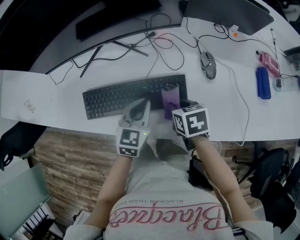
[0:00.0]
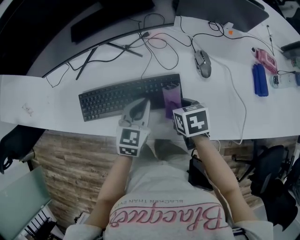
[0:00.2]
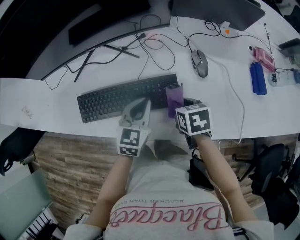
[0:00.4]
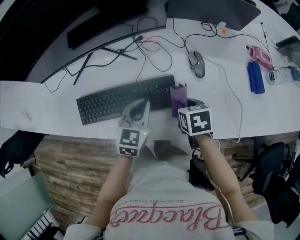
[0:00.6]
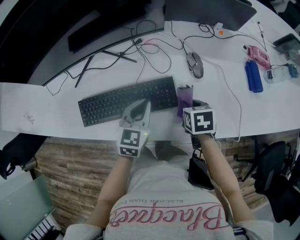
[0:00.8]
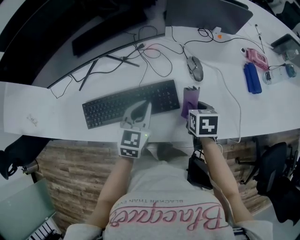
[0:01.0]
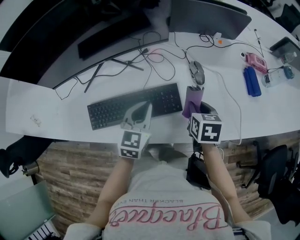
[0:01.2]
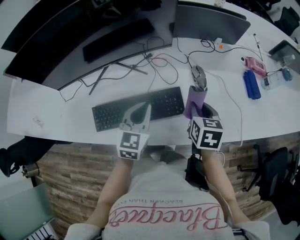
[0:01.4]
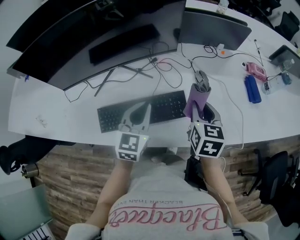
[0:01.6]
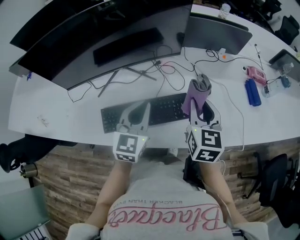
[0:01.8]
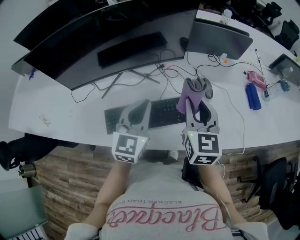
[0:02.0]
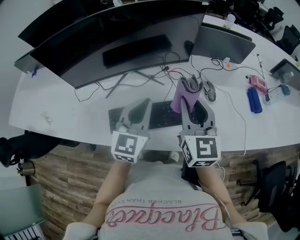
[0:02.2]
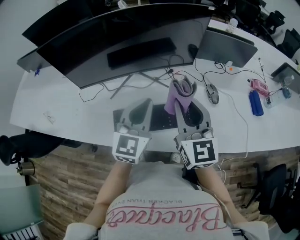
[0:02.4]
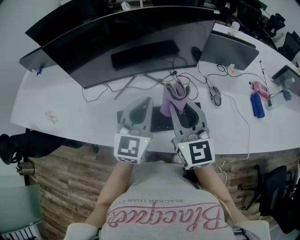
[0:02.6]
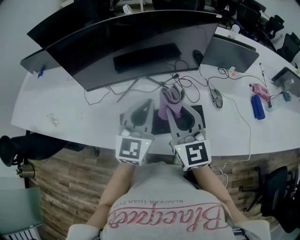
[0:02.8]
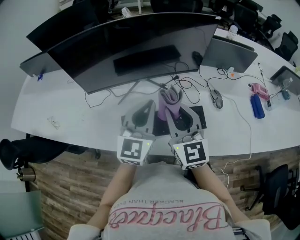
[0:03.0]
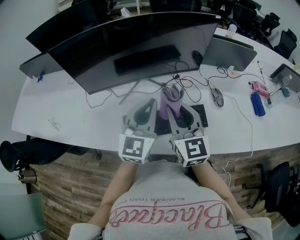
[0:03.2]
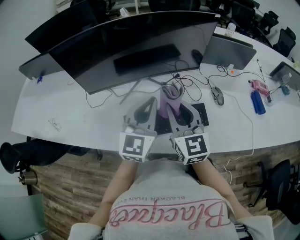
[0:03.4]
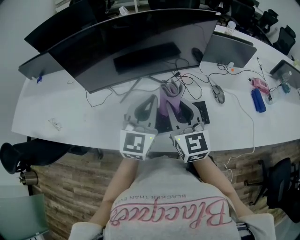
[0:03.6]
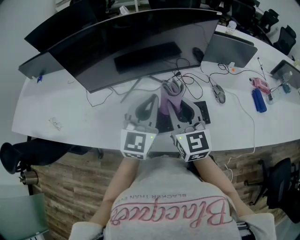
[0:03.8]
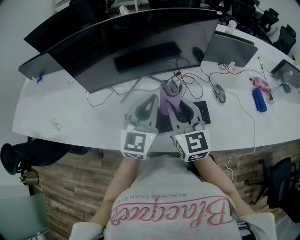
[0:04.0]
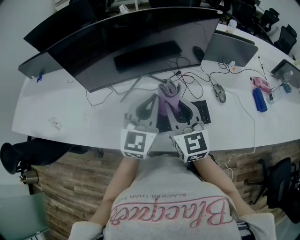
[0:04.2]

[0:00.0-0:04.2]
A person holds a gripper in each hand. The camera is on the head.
0:00.0 to 0:01.4: The right gripper travels upward and to the right by roughly 15 cm, and swivels some 30 degrees. Meanwhile the left gripper travels upward by approximately 10 cm.
0:01.4 to 0:02.8: The left gripper moves upward and to the left, about 20 cm, and rotates approximately 20 degrees. The right gripper travels to the left and upward by roughly 30 cm, and angles its fingers upward, by some 40 degrees.
0:02.8 to 0:04.2: The grippers make only small movements.

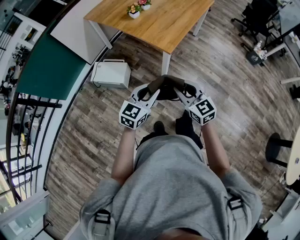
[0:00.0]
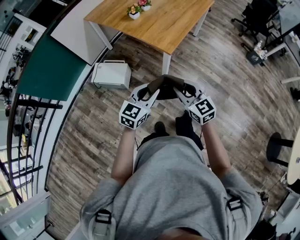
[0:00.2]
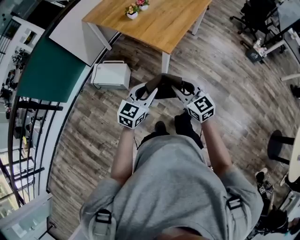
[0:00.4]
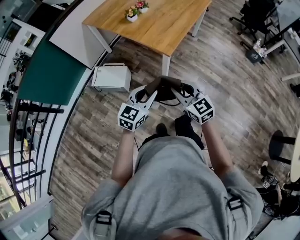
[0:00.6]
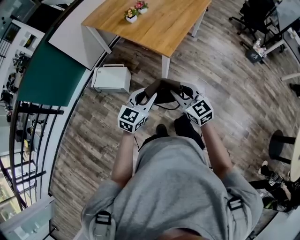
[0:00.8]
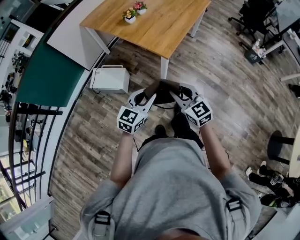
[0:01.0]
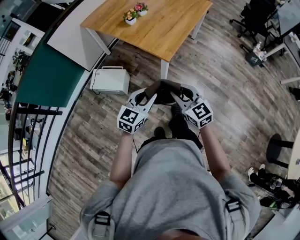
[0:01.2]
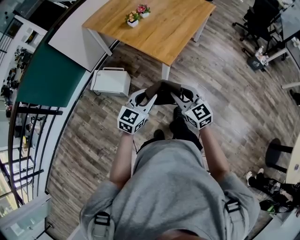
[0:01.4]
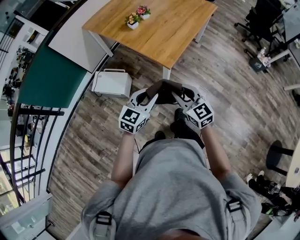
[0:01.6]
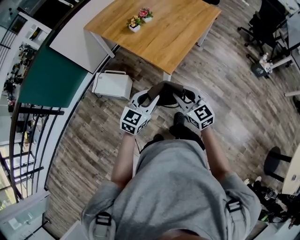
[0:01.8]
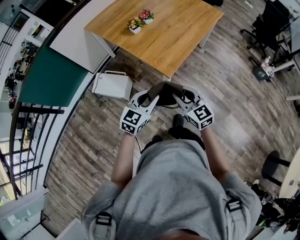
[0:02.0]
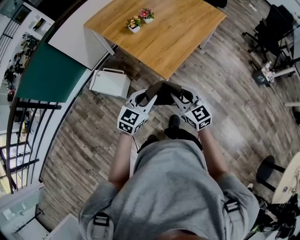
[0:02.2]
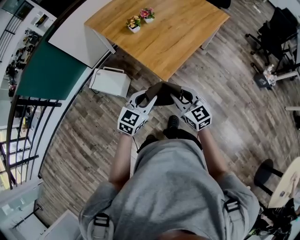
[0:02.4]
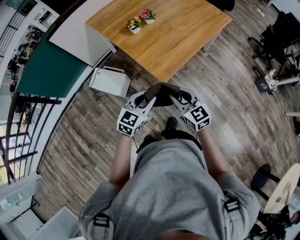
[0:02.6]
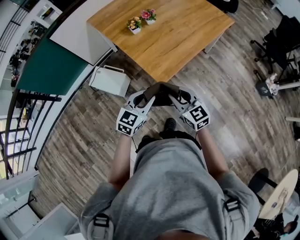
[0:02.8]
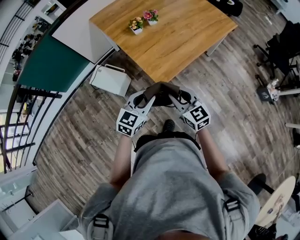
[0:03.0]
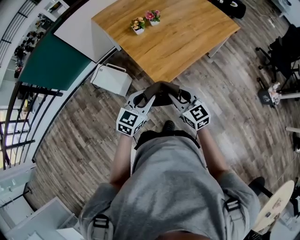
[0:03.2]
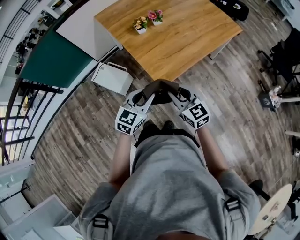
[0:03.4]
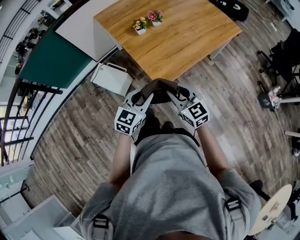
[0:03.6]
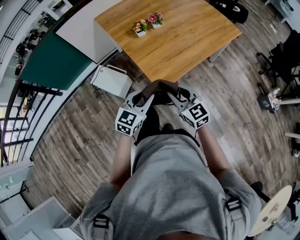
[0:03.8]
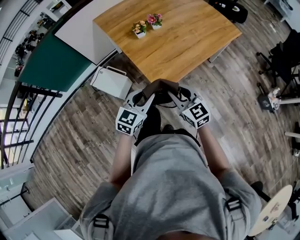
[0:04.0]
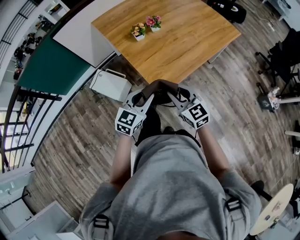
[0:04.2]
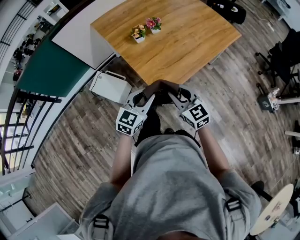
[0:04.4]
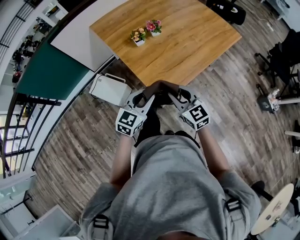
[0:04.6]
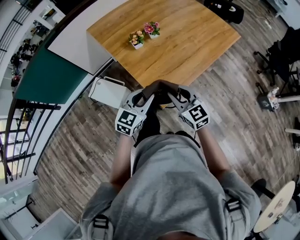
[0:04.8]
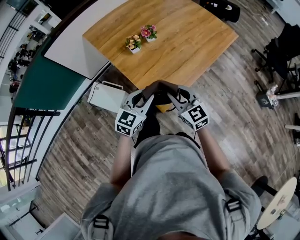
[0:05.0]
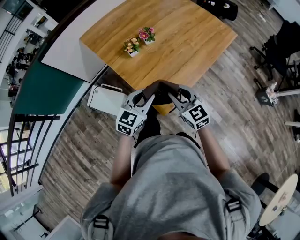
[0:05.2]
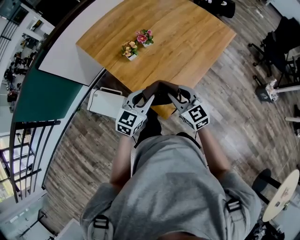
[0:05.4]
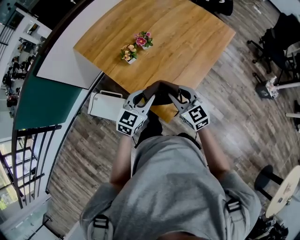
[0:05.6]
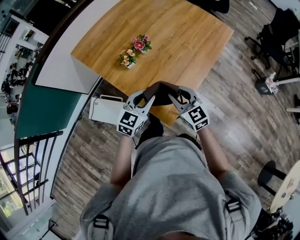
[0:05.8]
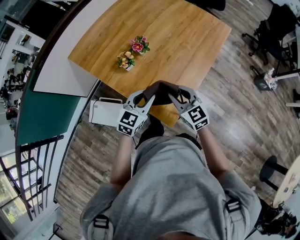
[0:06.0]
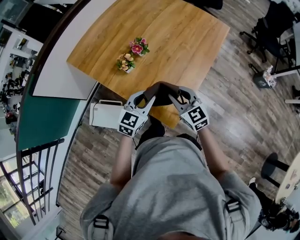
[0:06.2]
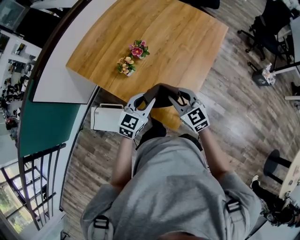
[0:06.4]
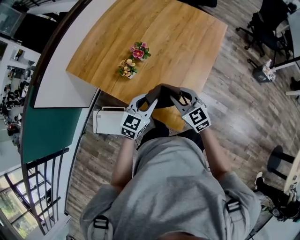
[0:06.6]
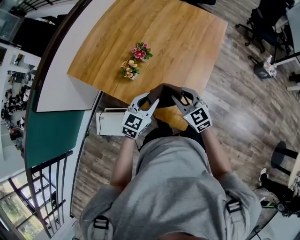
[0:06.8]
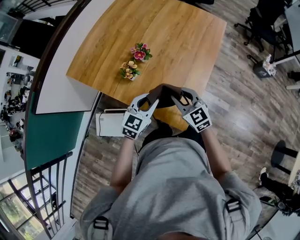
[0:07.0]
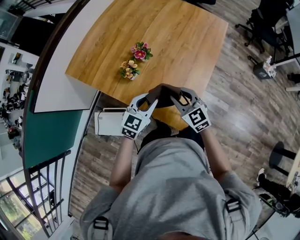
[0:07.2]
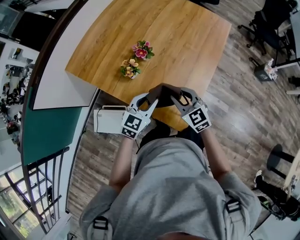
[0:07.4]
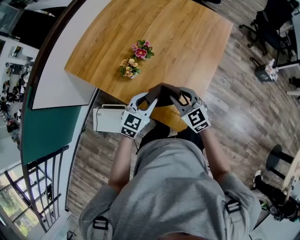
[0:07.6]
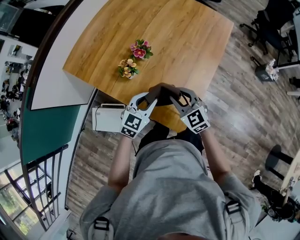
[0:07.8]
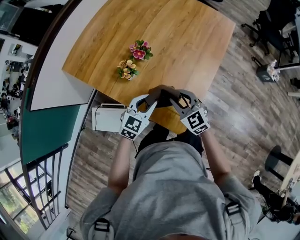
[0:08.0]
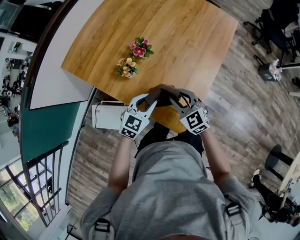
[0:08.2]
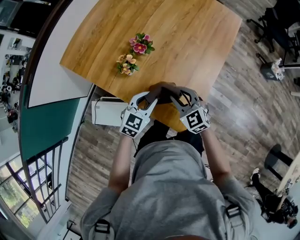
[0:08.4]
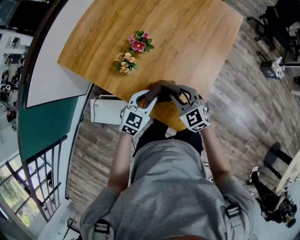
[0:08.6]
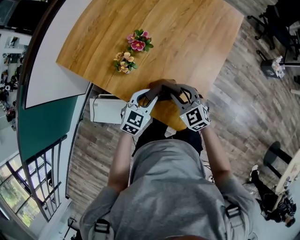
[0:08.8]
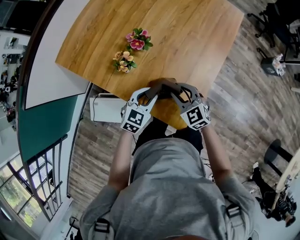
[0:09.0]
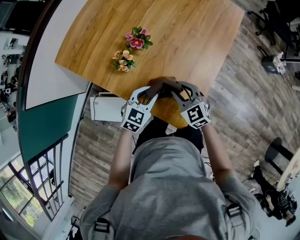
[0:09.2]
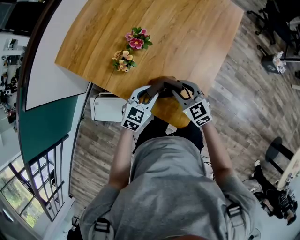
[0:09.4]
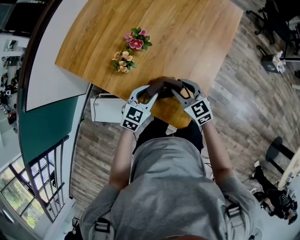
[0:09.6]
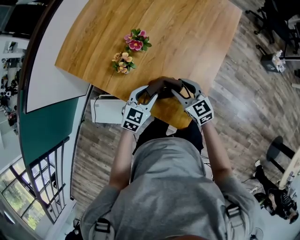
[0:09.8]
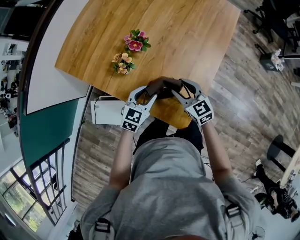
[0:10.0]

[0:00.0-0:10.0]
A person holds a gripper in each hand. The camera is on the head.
0:00.0 to 0:01.4: Both grippers move forward, roughly 5 cm.
0:01.4 to 0:02.8: Both grippers move forward and to the right, some 20 cm.
0:02.8 to 0:04.2: The grippers both shift forward by approximately 5 cm.
0:04.2 to 0:05.8: Both grippers move forward, approximately 20 cm.
0:05.8 to 0:07.2: The right gripper moves to the left, about 5 cm; the left gripper moves forward, roughly 5 cm.
0:07.2 to 0:08.6: Both grippers move downward, roughly 10 cm.
0:08.6 to 0:10.0: The grippers make only small movements.

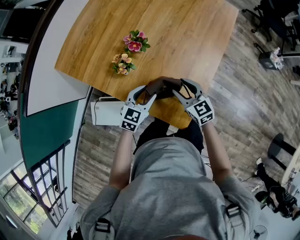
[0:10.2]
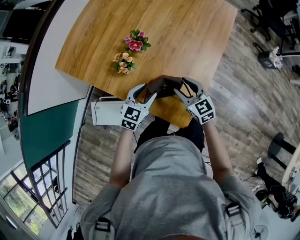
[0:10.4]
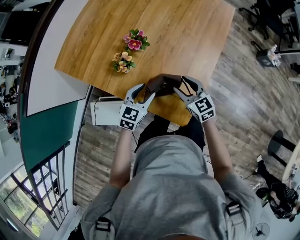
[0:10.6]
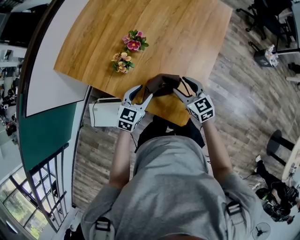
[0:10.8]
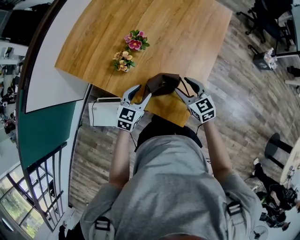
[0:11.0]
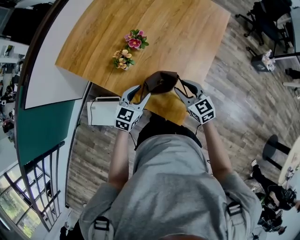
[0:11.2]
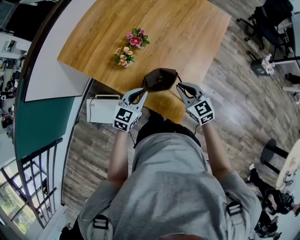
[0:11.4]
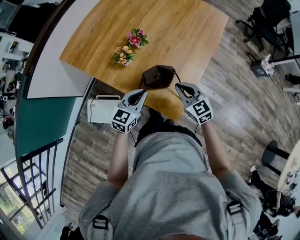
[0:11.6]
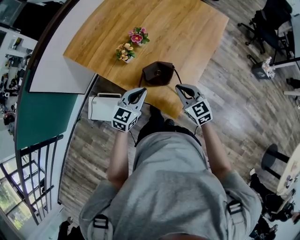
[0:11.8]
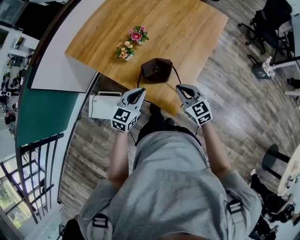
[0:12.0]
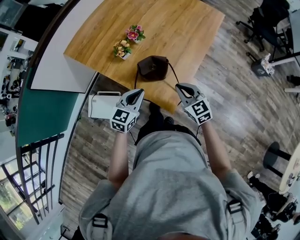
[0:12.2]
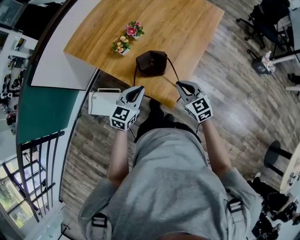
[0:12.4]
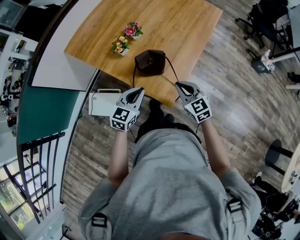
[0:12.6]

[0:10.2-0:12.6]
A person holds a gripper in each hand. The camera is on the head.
0:10.2 to 0:11.4: The right gripper travels backward and upward by about 10 cm, and closes its fingers, while the left gripper travels upward and backward by some 10 cm, and closes up.
0:11.4 to 0:12.6: The left gripper goes about 15 cm backward and upward; the right gripper goes approximately 10 cm backward.

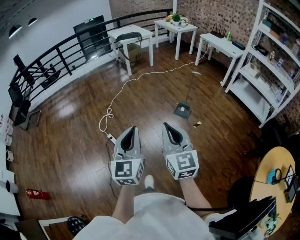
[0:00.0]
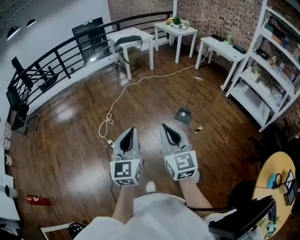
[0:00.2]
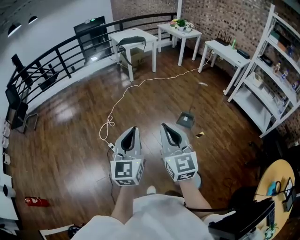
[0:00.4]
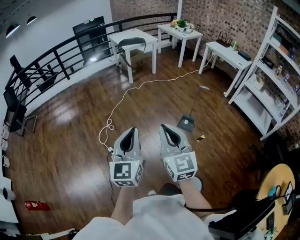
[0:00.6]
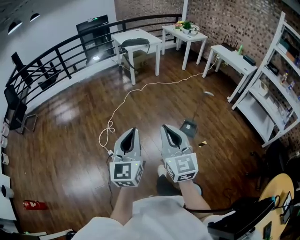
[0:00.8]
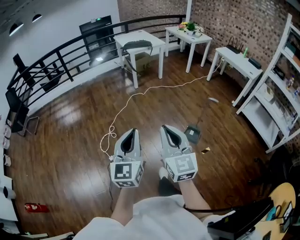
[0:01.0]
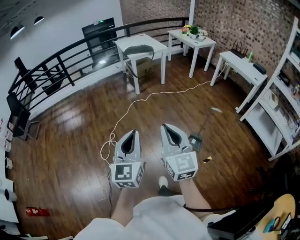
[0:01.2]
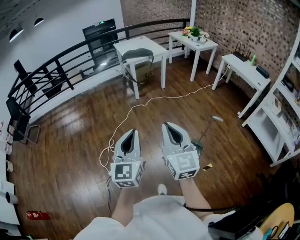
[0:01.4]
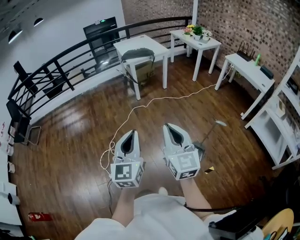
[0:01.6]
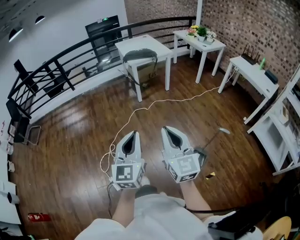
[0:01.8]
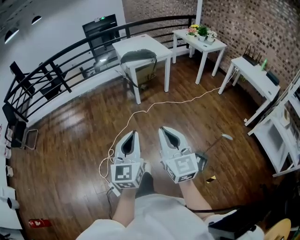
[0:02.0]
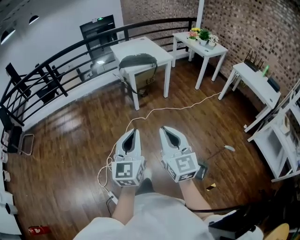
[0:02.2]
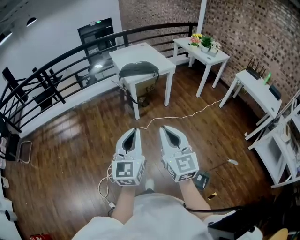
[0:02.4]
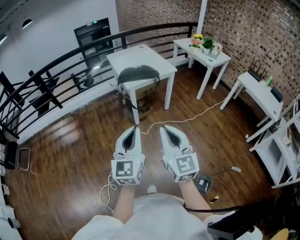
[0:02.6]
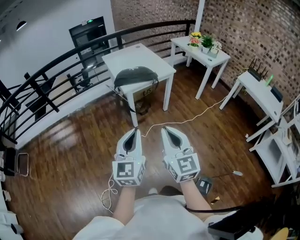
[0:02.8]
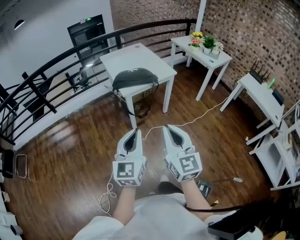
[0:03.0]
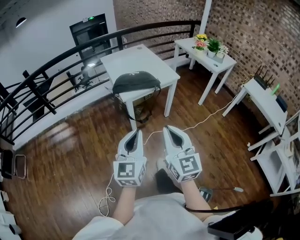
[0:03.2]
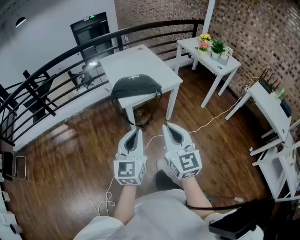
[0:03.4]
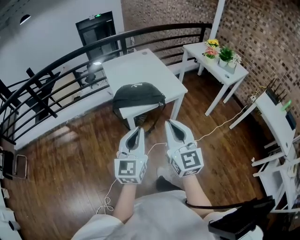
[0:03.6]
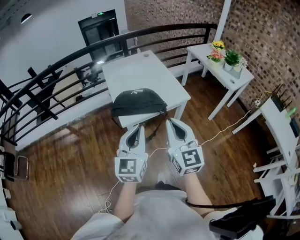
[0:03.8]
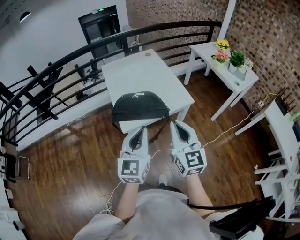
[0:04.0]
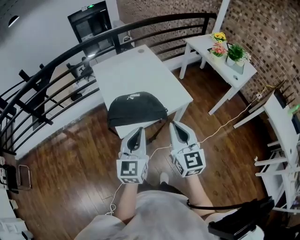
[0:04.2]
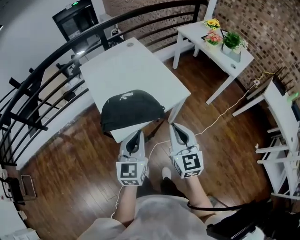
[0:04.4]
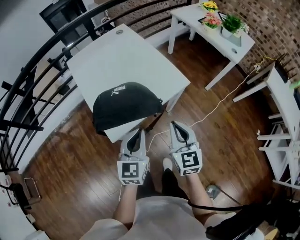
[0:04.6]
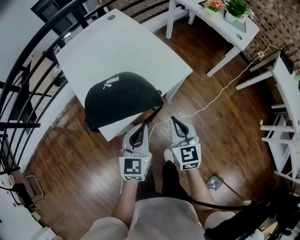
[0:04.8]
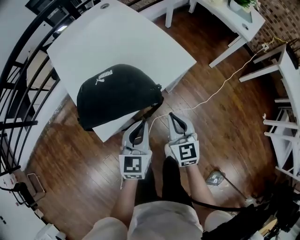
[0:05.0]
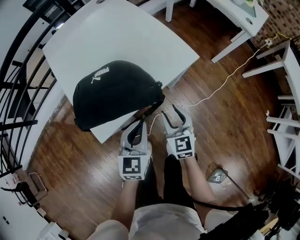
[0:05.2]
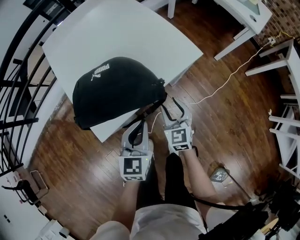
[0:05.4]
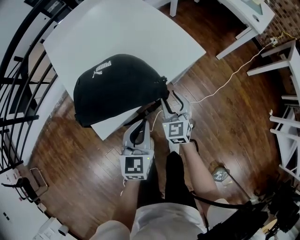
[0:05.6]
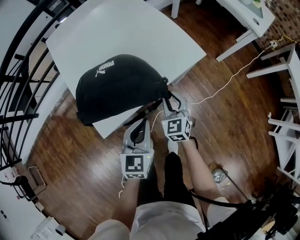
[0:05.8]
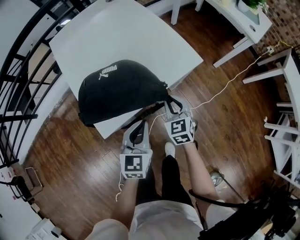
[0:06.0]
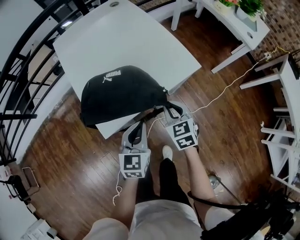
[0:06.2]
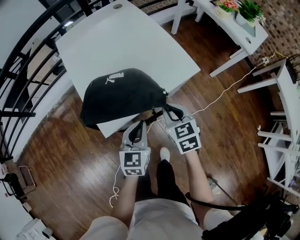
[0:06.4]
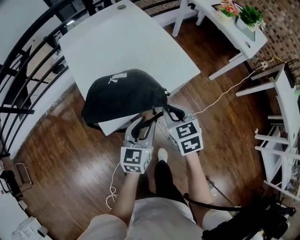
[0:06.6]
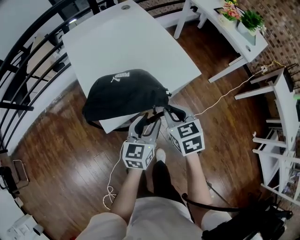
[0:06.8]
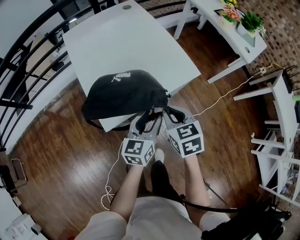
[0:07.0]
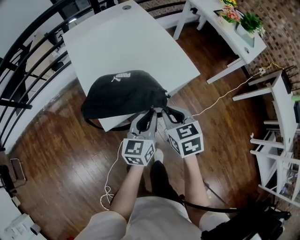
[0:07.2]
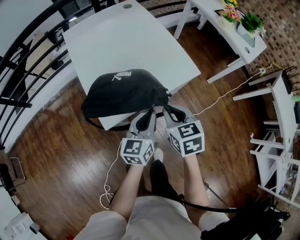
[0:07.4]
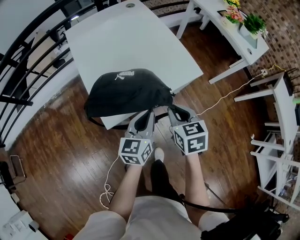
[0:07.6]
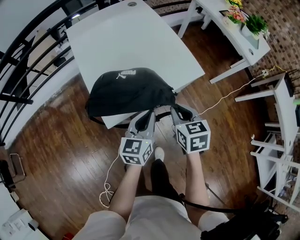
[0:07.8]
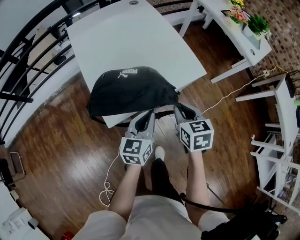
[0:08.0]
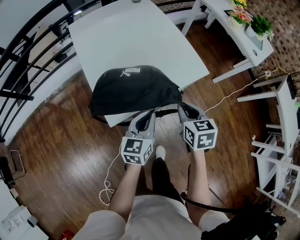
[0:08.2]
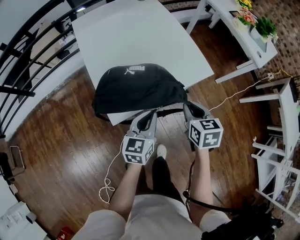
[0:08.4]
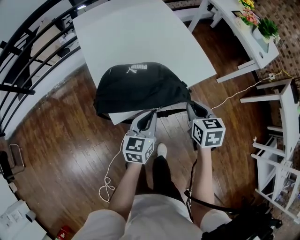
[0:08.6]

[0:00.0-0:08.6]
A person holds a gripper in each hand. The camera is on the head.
0:00.0 to 0:01.4: Both grippers are carried forward, approximately 50 cm.
0:01.4 to 0:02.8: The two grippers travel together, forward, about 60 cm.
0:02.8 to 0:04.4: The pair of grippers is taken forward, approximately 60 cm.
0:04.4 to 0:05.8: Both grippers travel together downward, approximately 30 cm. The right gripper rotates about 20 degrees, and opens.
0:05.8 to 0:07.2: The left gripper is displaced upward by approximately 10 cm, rotates approximately 20 degrees, and opens, then closes again. The right gripper is displaced upward by about 20 cm, and turns by about 20 degrees.
0:07.2 to 0:08.6: The left gripper goes some 5 cm downward. Meanwhile the right gripper shifts by some 5 cm.
